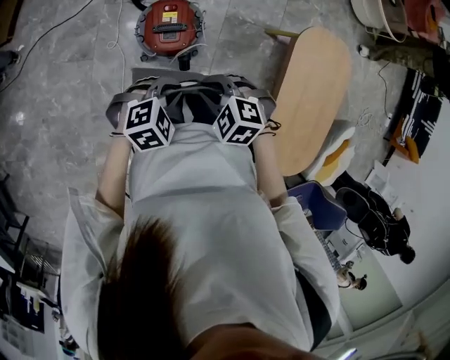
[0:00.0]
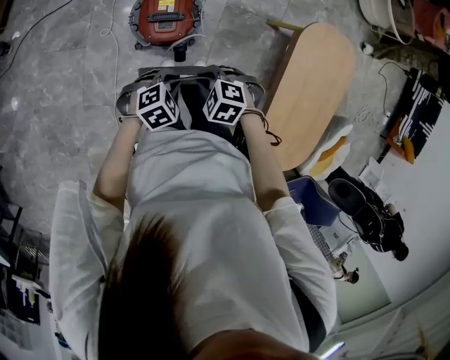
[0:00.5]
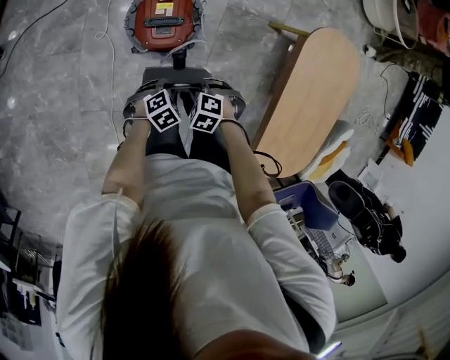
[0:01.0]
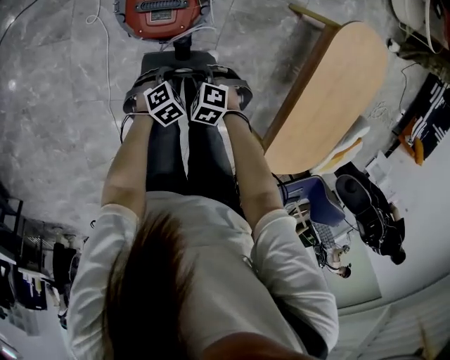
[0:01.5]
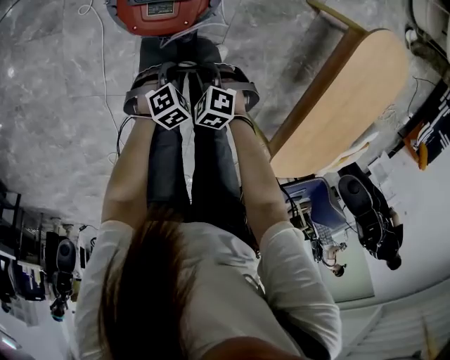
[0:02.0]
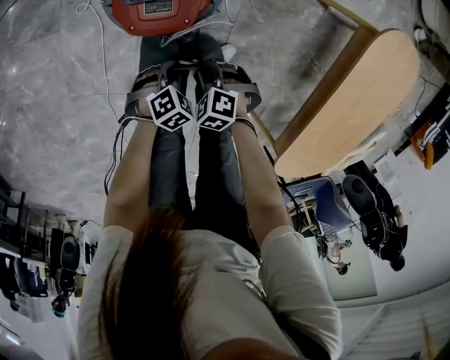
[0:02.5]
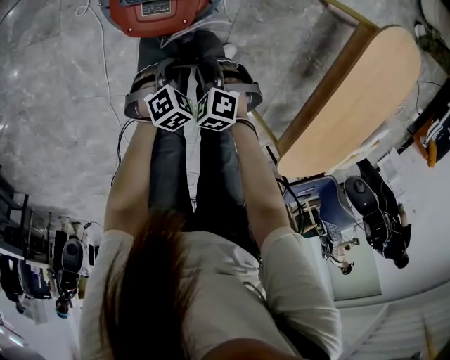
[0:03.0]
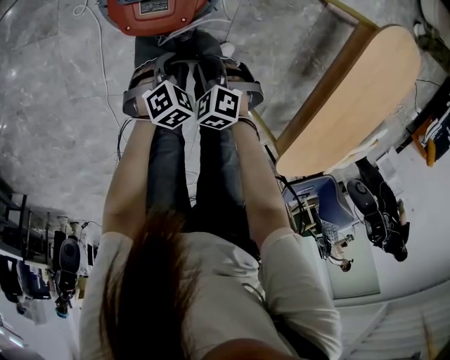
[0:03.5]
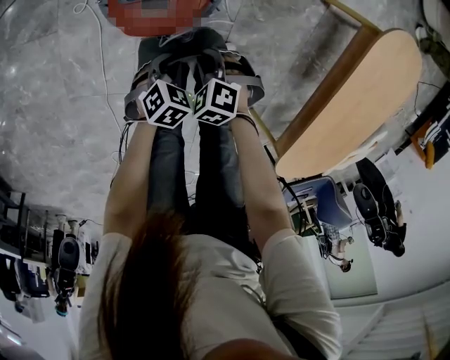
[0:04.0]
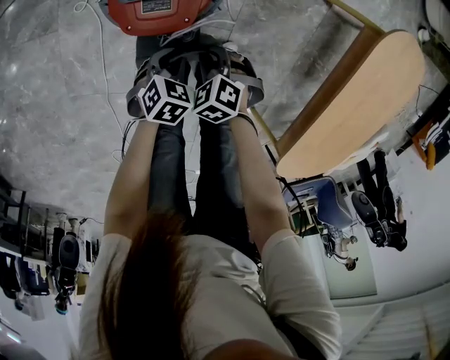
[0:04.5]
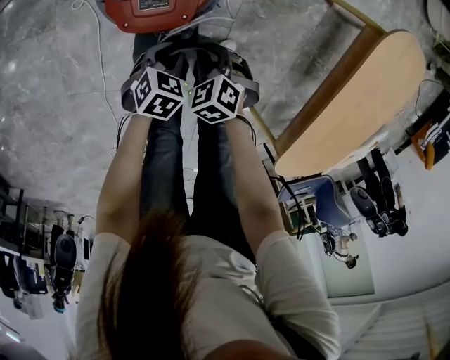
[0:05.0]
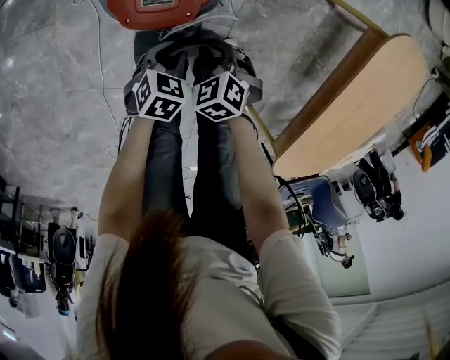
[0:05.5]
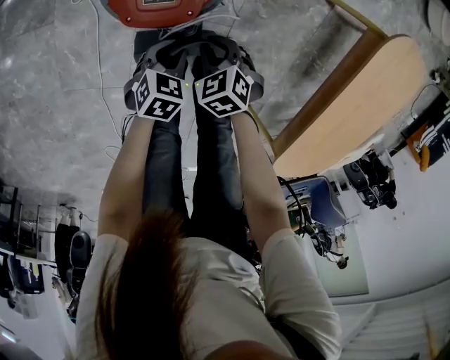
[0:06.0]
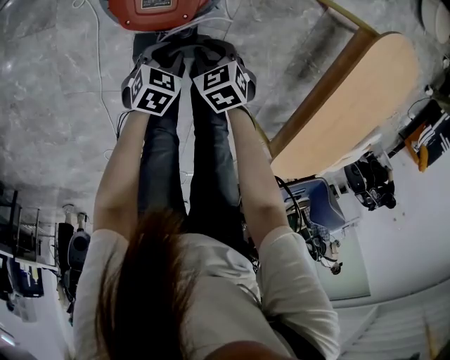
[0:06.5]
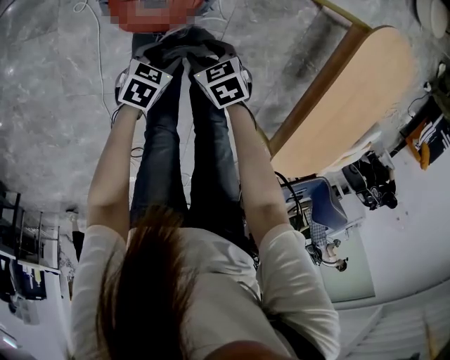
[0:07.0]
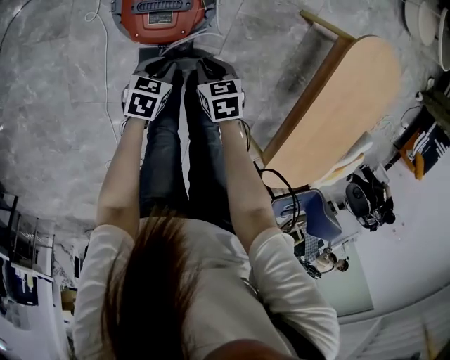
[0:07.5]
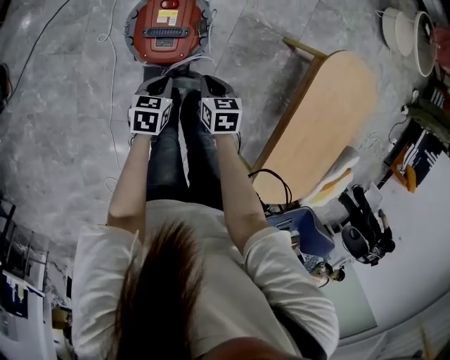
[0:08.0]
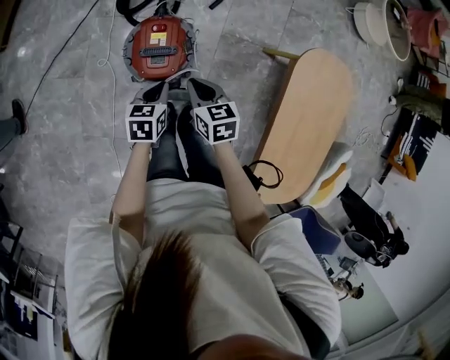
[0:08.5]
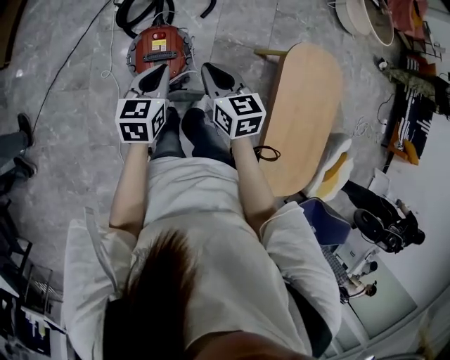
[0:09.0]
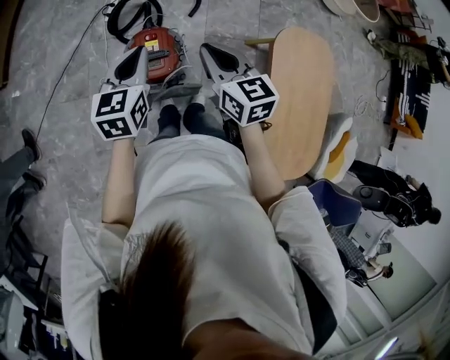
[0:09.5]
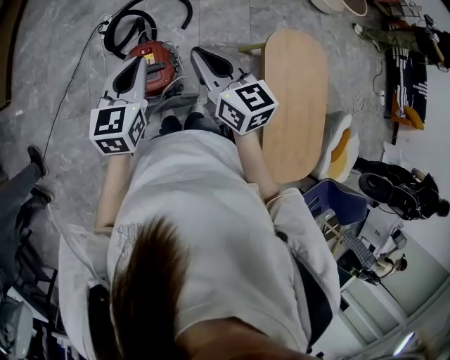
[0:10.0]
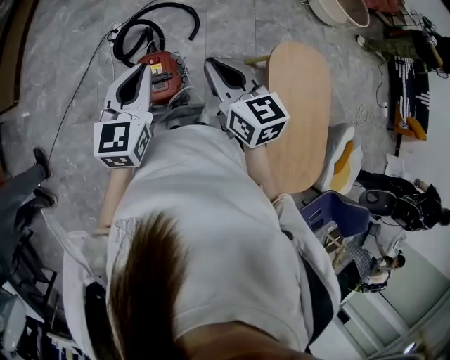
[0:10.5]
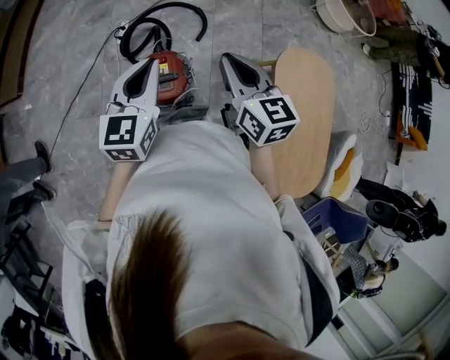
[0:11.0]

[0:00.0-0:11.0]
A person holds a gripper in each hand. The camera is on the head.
0:00.0 to 0:02.0: The grippers both shift downward by roughly 40 cm. The left gripper turns by some 20 degrees.
0:02.0 to 0:03.5: There are only small adjustments of the grippers.
0:03.5 to 0:05.5: The left gripper turns by some 20 degrees.
0:05.5 to 0:07.5: Both grippers move upward, some 5 cm. The left gripper opens and closes again. Meanwhile the right gripper turns by some 40 degrees, and opens, then closes again.
0:07.5 to 0:09.0: Both grippers move upward, roughly 40 cm. The left gripper rotates about 30 degrees, while the right gripper turns by roughly 30 degrees.
0:09.0 to 0:11.0: The two grippers go some 20 cm upward. The left gripper turns by roughly 20 degrees.

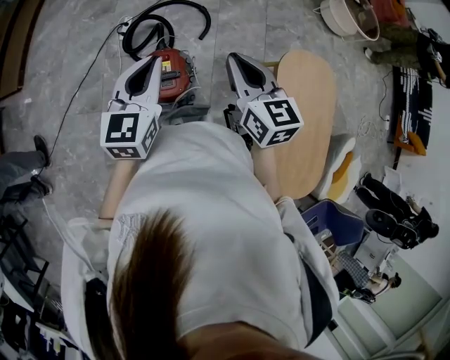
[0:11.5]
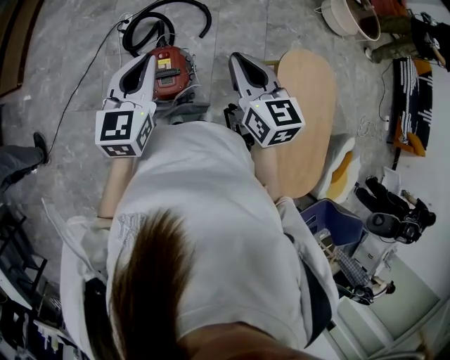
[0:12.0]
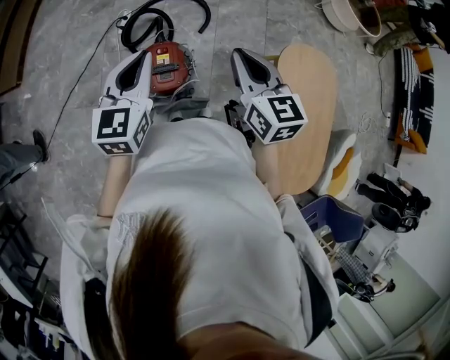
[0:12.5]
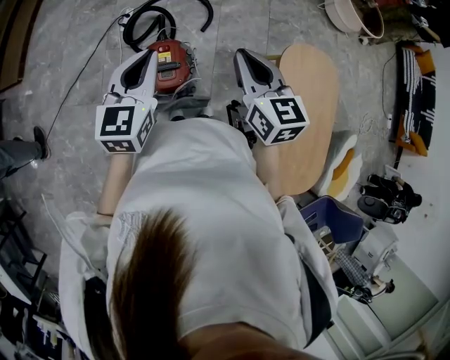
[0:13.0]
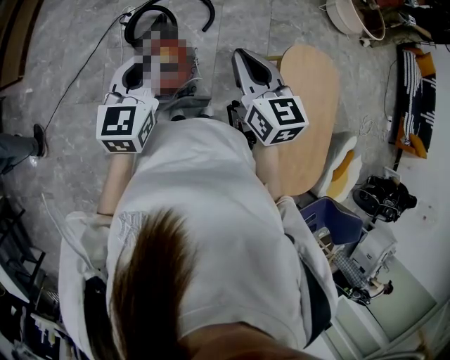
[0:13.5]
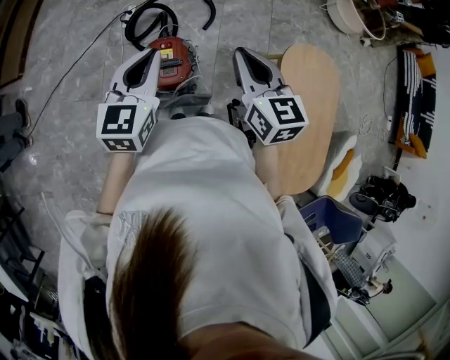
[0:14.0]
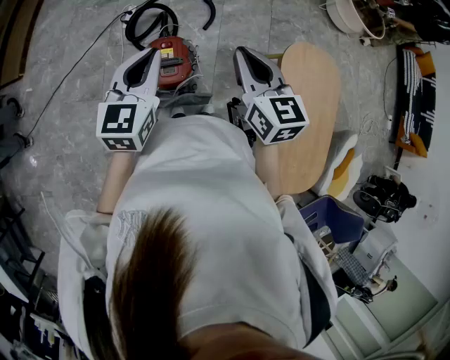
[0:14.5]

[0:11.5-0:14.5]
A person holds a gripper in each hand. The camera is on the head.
0:11.5 to 0:14.5: The grippers move only a little.

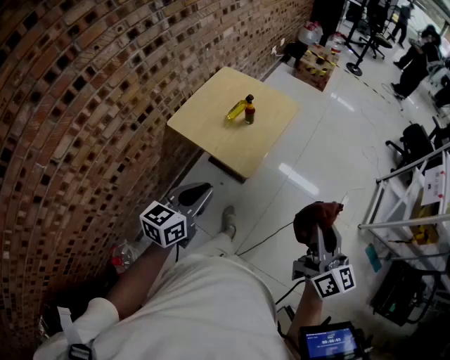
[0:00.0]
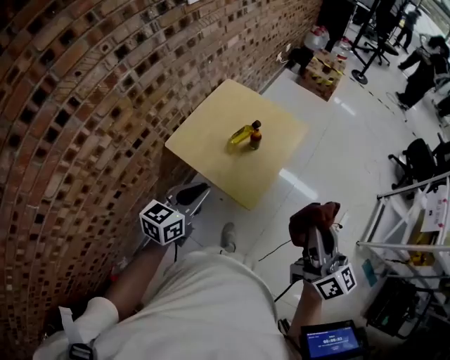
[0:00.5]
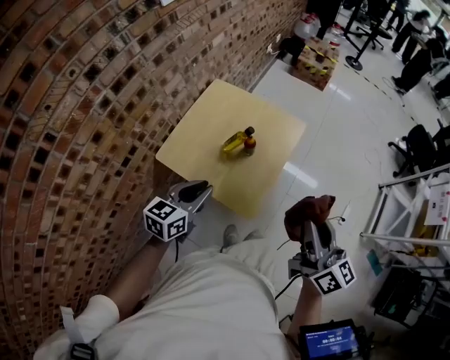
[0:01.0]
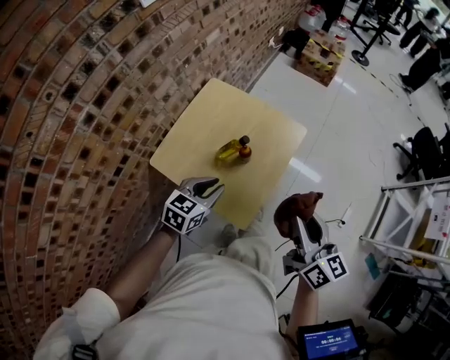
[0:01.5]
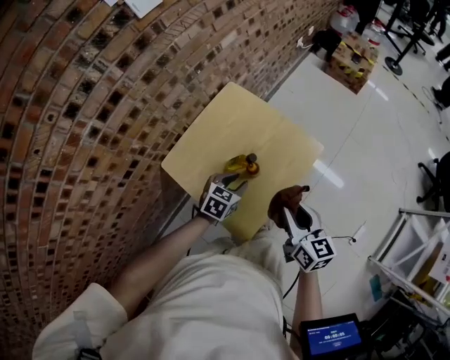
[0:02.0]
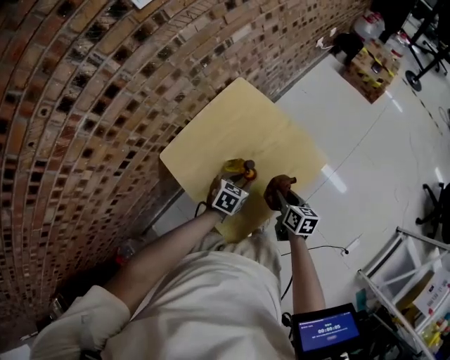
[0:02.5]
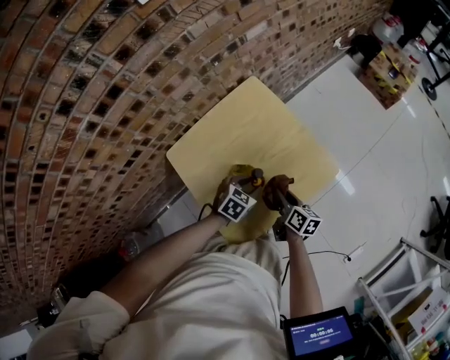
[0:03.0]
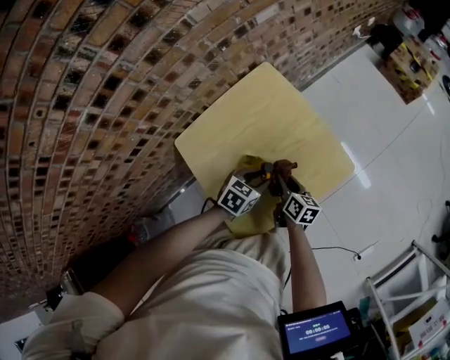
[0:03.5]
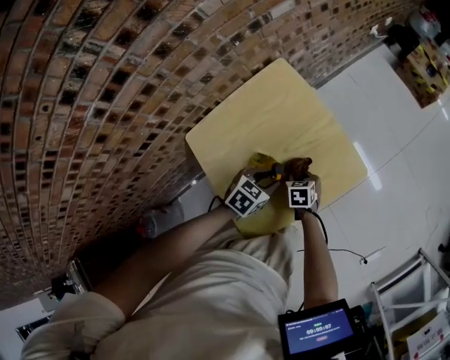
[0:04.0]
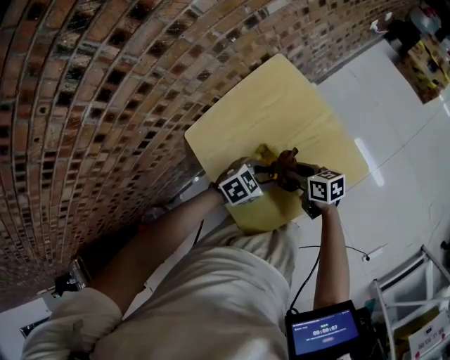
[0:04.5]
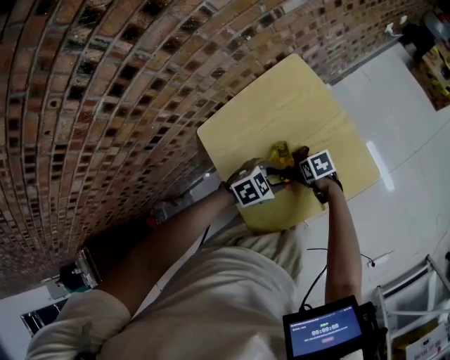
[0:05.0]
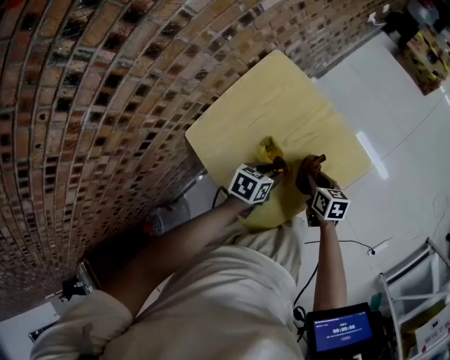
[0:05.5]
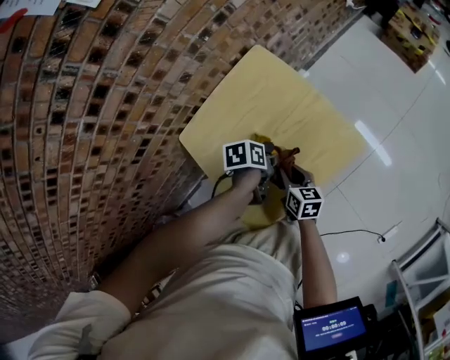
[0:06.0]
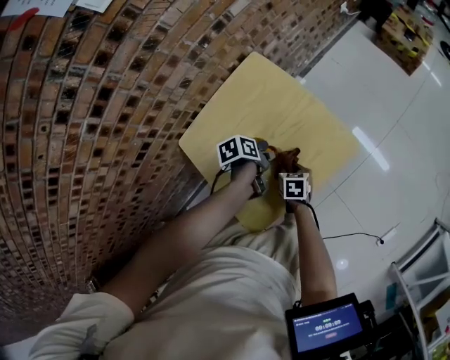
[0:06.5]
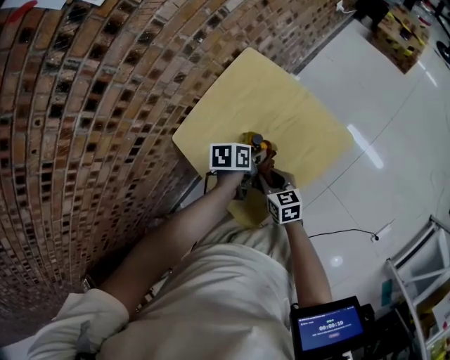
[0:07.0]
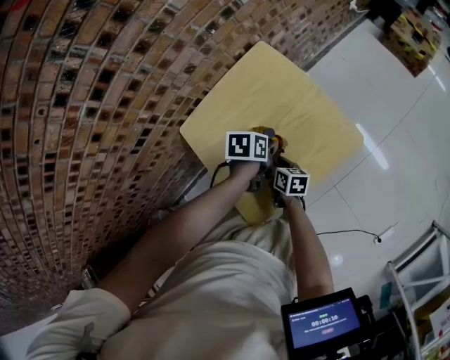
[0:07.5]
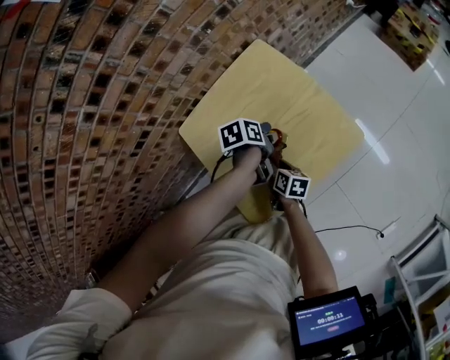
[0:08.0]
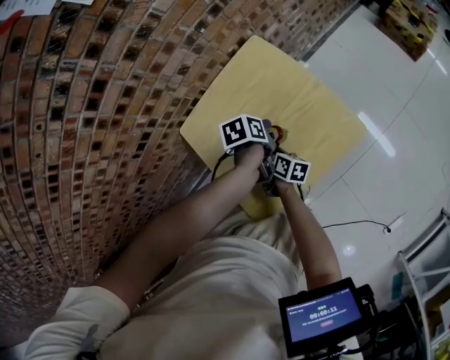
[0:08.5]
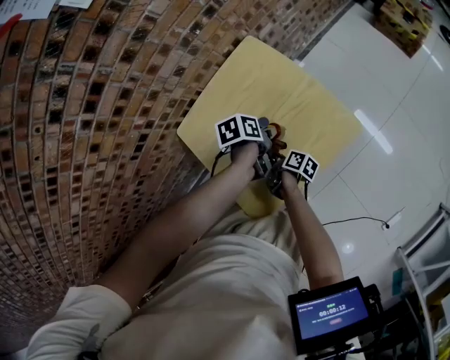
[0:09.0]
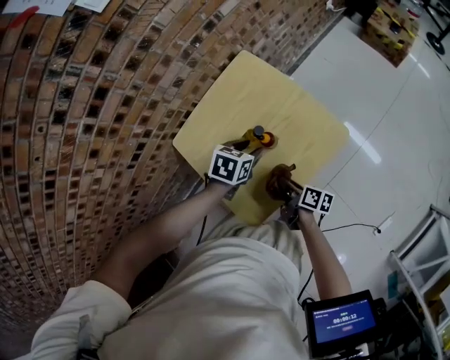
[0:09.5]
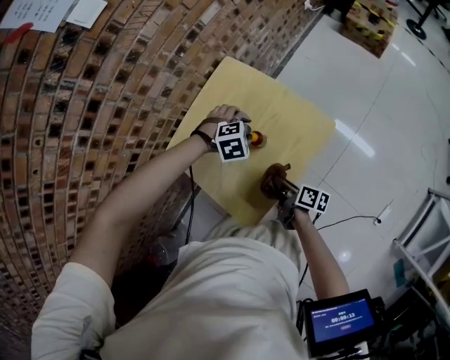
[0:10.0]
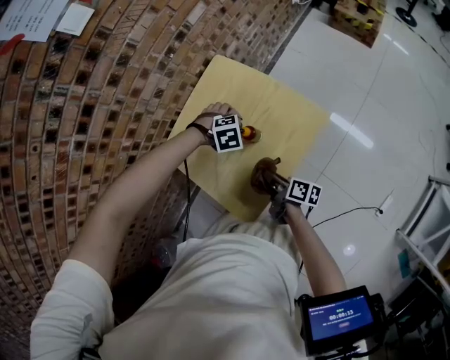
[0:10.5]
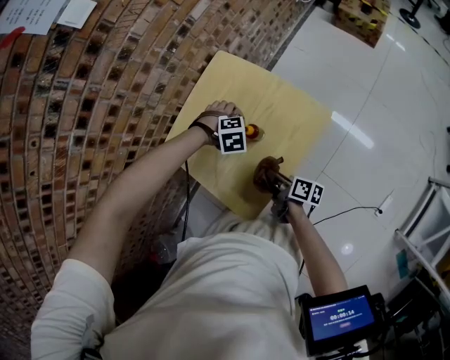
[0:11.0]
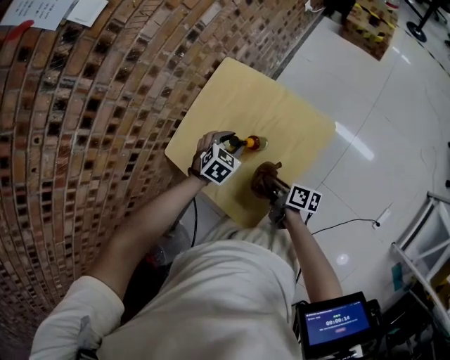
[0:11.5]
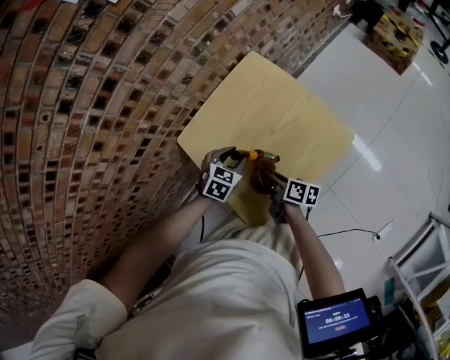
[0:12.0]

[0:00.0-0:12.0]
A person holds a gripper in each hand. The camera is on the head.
0:00.0 to 0:02.0: The two grippers travel together, forward, approximately 40 cm. The grippers both shift downward by some 20 cm. The right gripper changes its angle by about 30 degrees; the left gripper rotates about 30 degrees, and opens up.
0:02.0 to 0:04.0: The right gripper goes some 35 cm downward and forward, and tips its fingers downward by roughly 40 degrees. The left gripper moves downward, roughly 10 cm.
0:04.0 to 0:06.0: The right gripper goes up and down, some 10 cm each way, reversing 2 times, and tilts its fingers roughly 30 degrees upward; the left gripper rotates around the line of its fingers by approximately 50 degrees, counterclockwise from behind.
0:06.0 to 0:08.0: The right gripper moves up and down over some 10 cm, changing direction 2 times.
0:08.0 to 0:10.0: The left gripper ends up roughly 5 cm from where it was, twists approximately 120 degrees clockwise, seen from behind, and opens, while the right gripper moves roughly 10 cm, and rotates about 30 degrees.
0:10.0 to 0:12.0: The right gripper shifts by about 10 cm, while the left gripper changes place by roughly 15 cm, and twists roughly 50 degrees counterclockwise, seen from behind.
